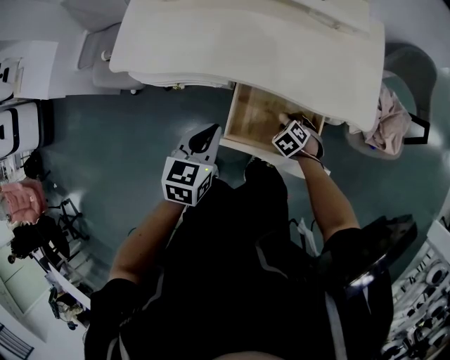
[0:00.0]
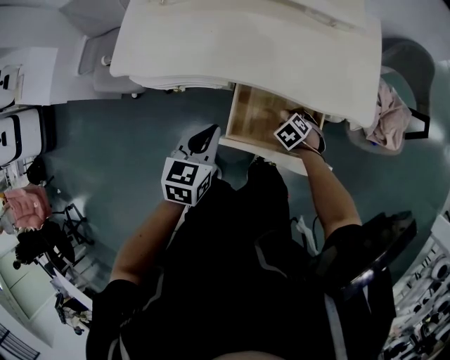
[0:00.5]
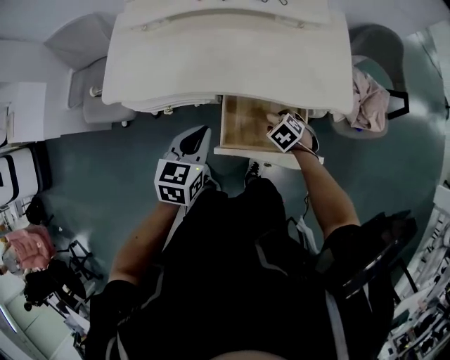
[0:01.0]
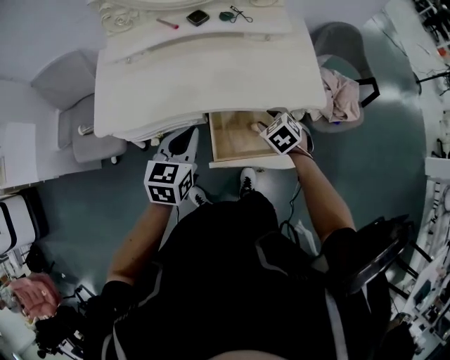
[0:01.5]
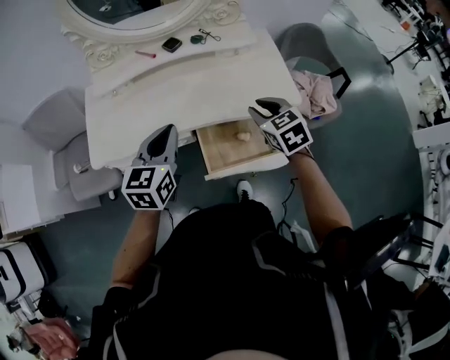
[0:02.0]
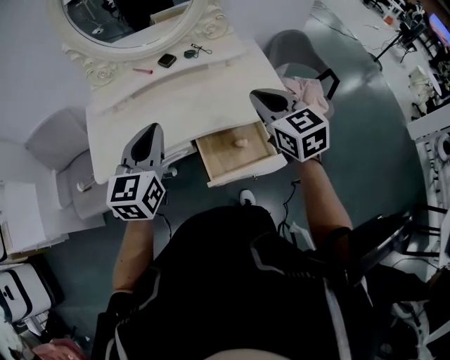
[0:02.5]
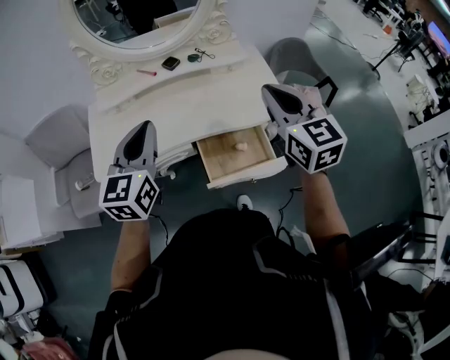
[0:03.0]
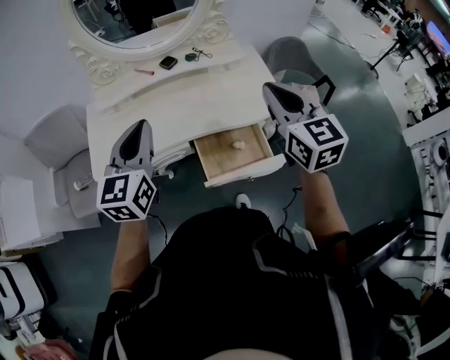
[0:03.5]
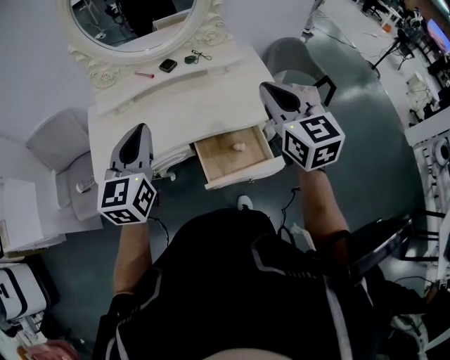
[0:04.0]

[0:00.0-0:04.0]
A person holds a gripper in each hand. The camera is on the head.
0:00.0 to 0:02.0: The right gripper heads upward, covering about 35 cm, and tilts its fingers about 30 degrees upward; the left gripper travels upward by roughly 20 cm, and turns by roughly 30 degrees.
0:02.0 to 0:04.0: The left gripper moves upward, approximately 10 cm; the right gripper heads upward, covering about 20 cm, tilts its fingers roughly 30 degrees upward, and closes up.

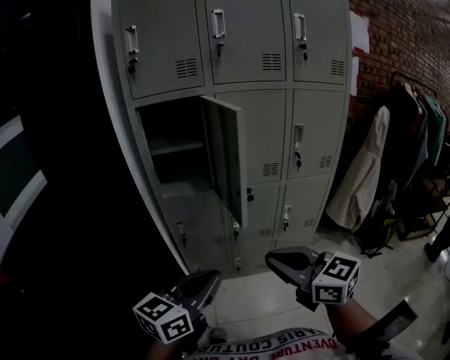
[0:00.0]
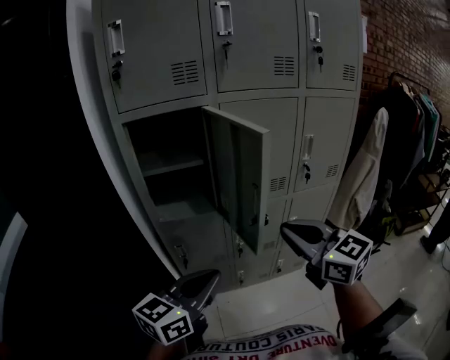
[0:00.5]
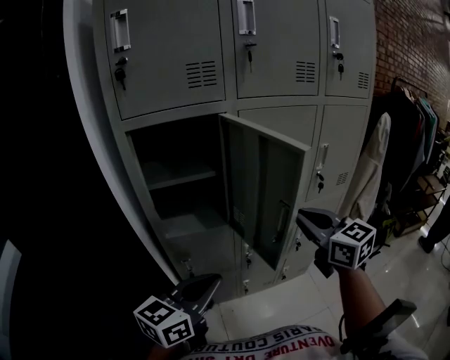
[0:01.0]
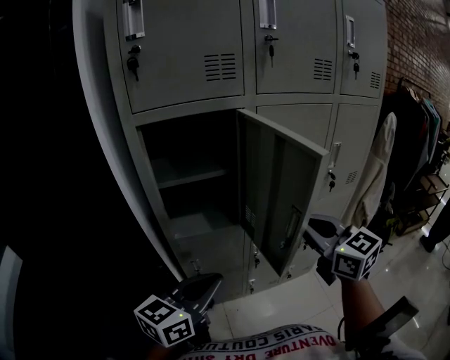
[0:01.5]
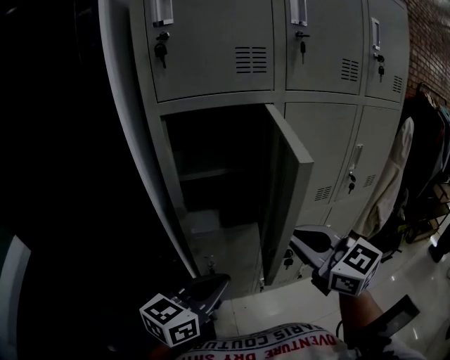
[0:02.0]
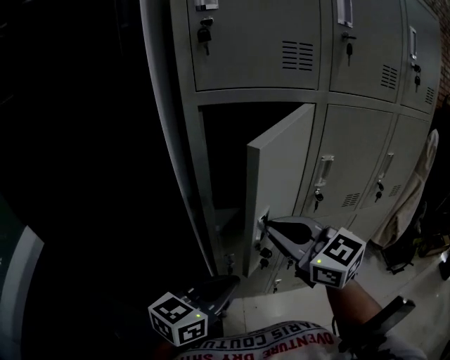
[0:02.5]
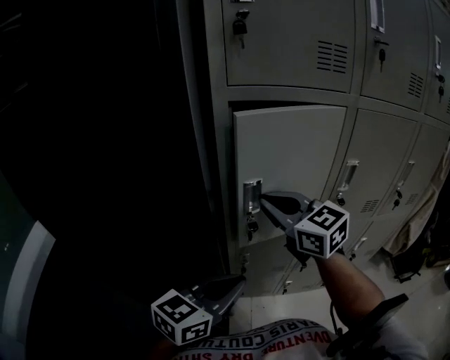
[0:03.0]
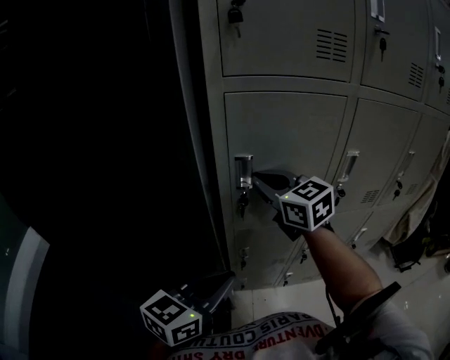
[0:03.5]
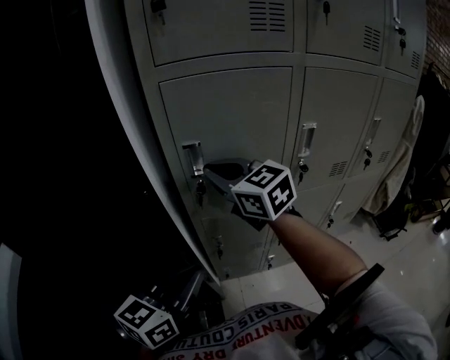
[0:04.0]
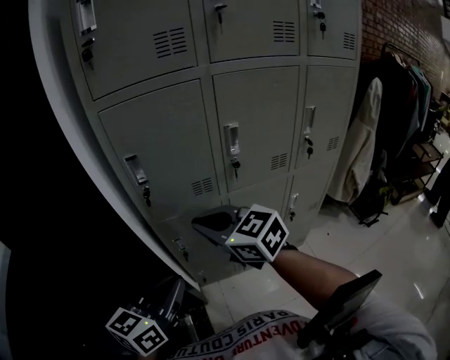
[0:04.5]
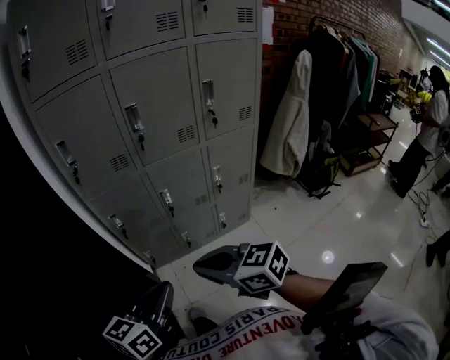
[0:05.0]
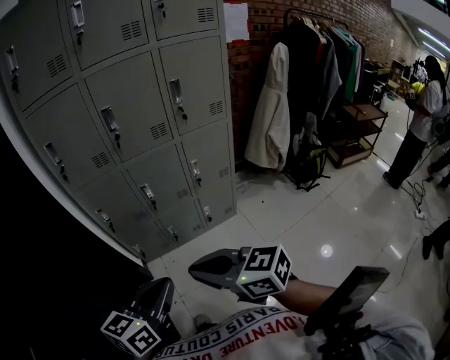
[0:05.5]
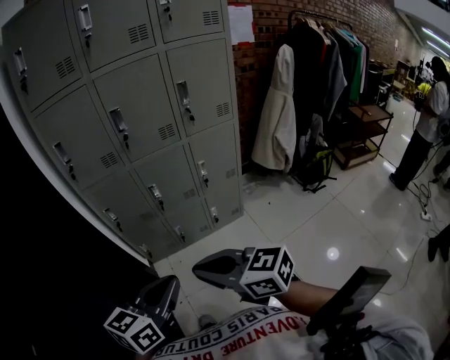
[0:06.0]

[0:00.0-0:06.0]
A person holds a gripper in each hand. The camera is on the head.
0:00.0 to 0:02.0: Both grippers move forward and to the left, approximately 25 cm.
0:02.0 to 0:04.0: The left gripper heads to the left, covering roughly 10 cm. Meanwhile the right gripper shifts some 25 cm forward and to the left.
0:04.0 to 0:06.0: The two grippers travel together, backward and to the right, approximately 60 cm. The right gripper swivels some 20 degrees.

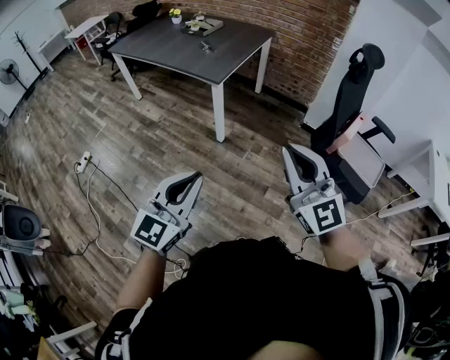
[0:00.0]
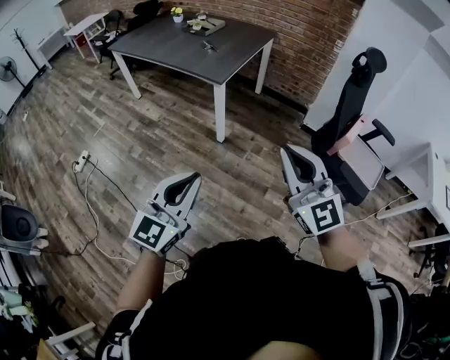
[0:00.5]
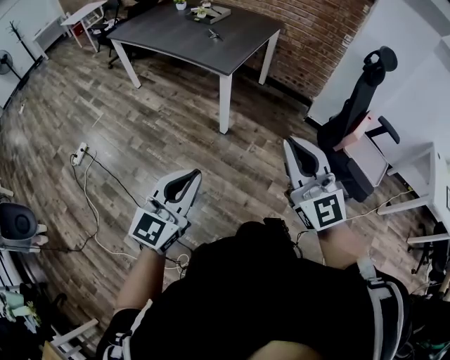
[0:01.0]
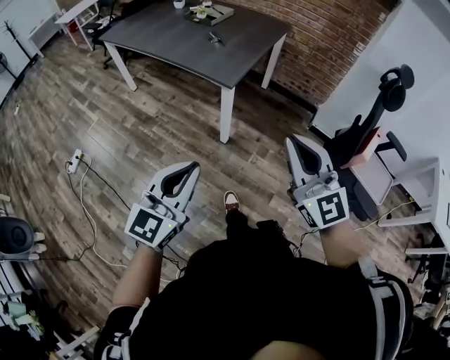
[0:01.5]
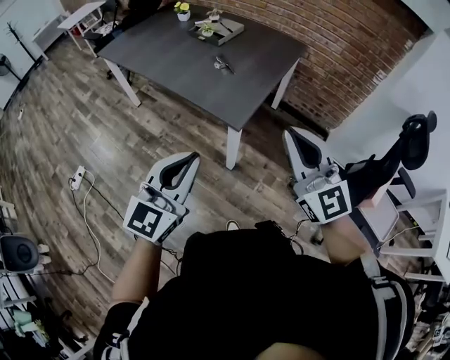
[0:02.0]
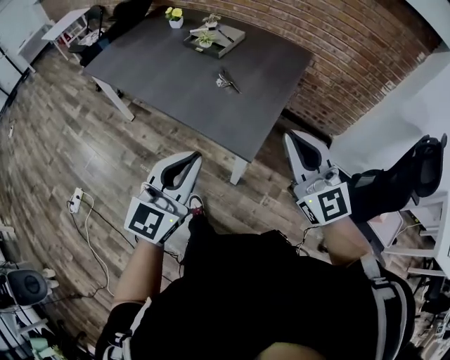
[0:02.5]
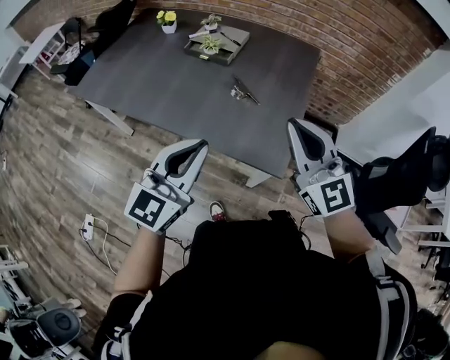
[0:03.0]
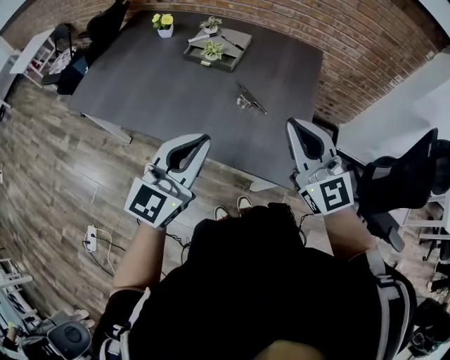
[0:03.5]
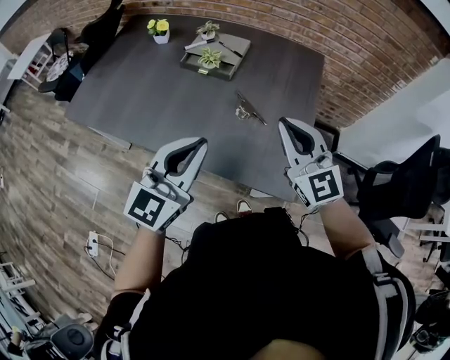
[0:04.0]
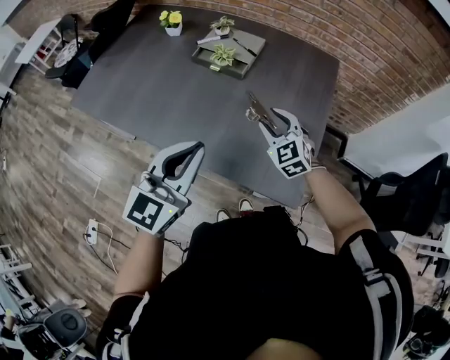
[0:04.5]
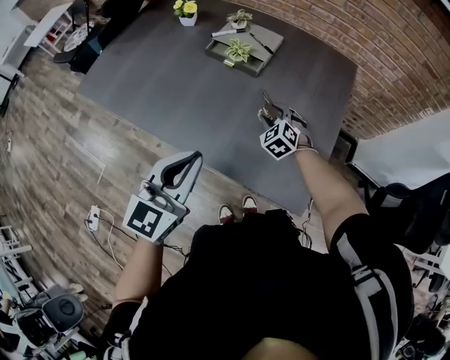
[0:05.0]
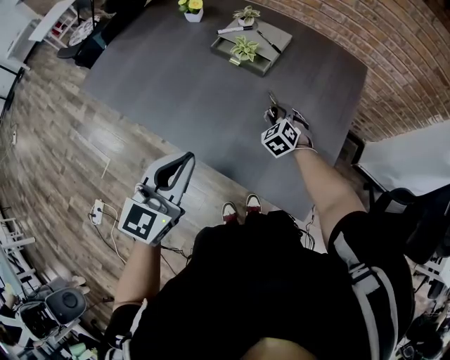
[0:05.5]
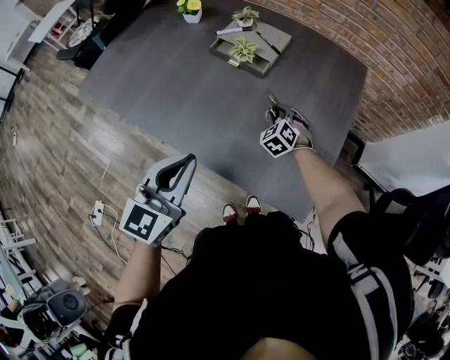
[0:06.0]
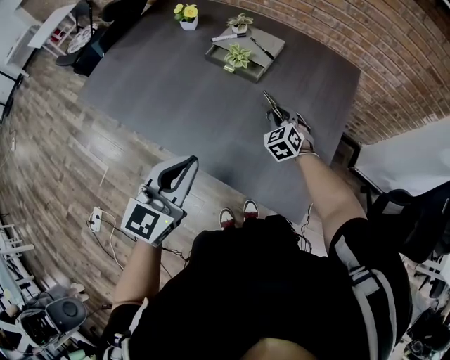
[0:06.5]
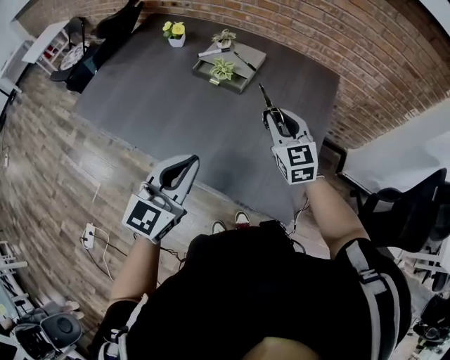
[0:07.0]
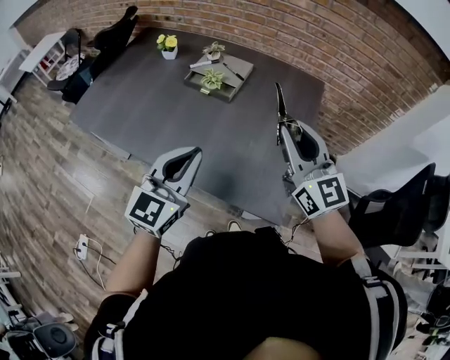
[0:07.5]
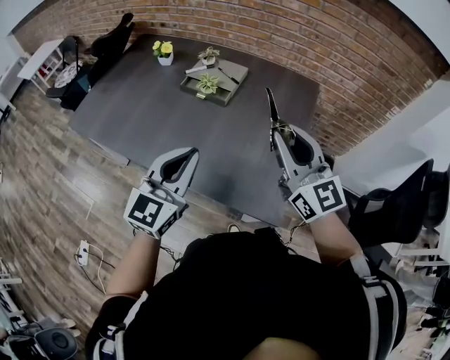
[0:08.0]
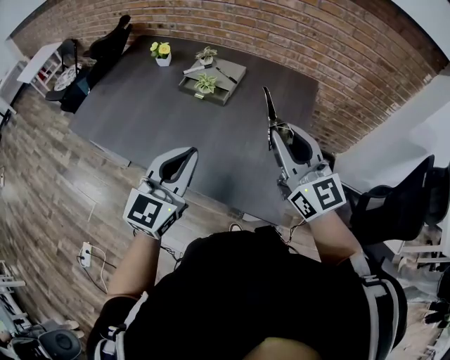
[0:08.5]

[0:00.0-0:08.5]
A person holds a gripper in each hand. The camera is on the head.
0:00.0 to 0:02.0: The pair of grippers is taken forward, approximately 40 cm.
0:02.0 to 0:04.0: Both grippers are carried forward and to the left, roughly 40 cm. The right gripper rotates about 20 degrees.
0:04.0 to 0:06.5: The right gripper heads downward and forward, covering approximately 30 cm, tilts its fingers approximately 40 degrees downward, and opens, then closes once more. Meanwhile the left gripper shifts some 10 cm downward and to the left.
0:06.5 to 0:08.5: The right gripper travels upward and backward by roughly 35 cm, and angles its fingers upward, by approximately 50 degrees. Meanwhile the left gripper travels to the right and upward by some 10 cm.

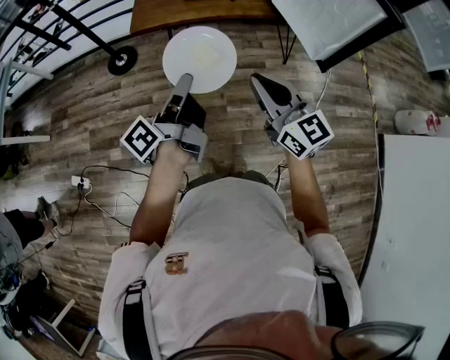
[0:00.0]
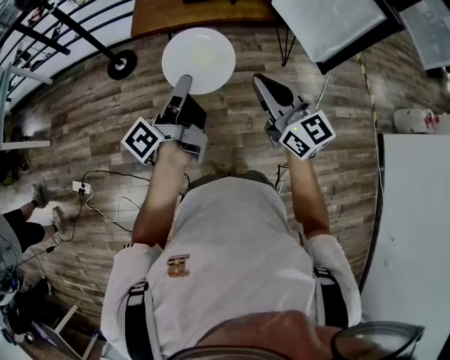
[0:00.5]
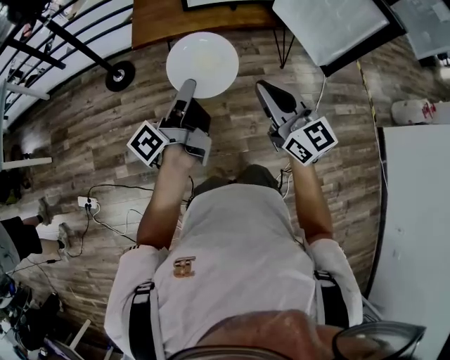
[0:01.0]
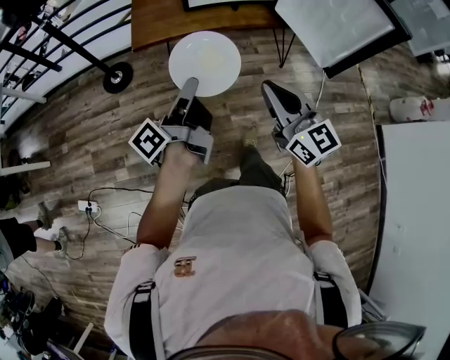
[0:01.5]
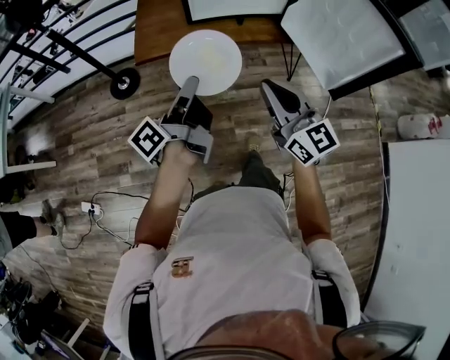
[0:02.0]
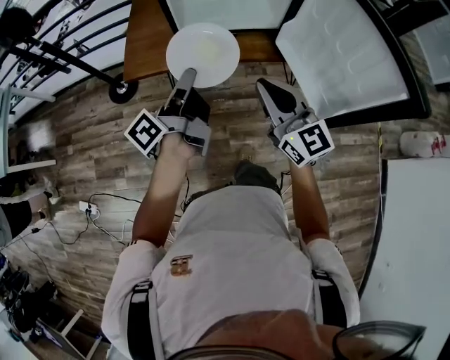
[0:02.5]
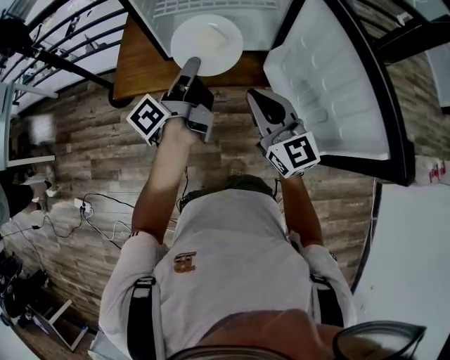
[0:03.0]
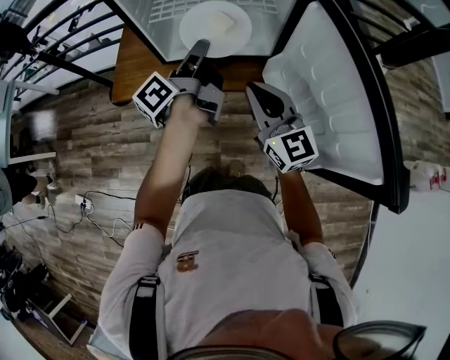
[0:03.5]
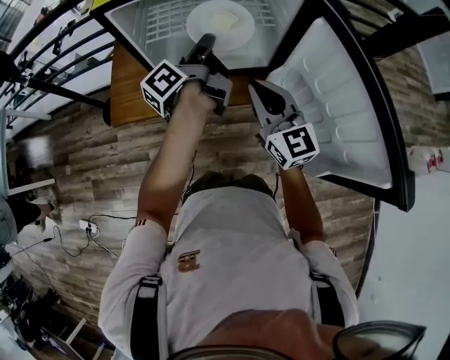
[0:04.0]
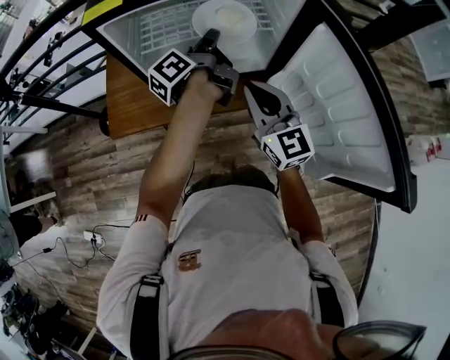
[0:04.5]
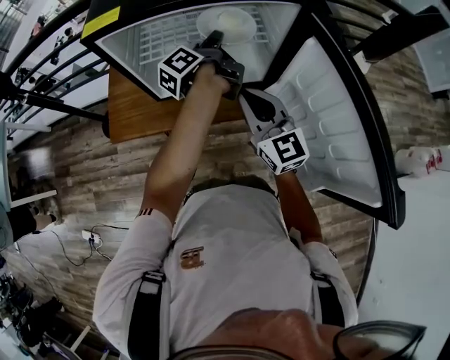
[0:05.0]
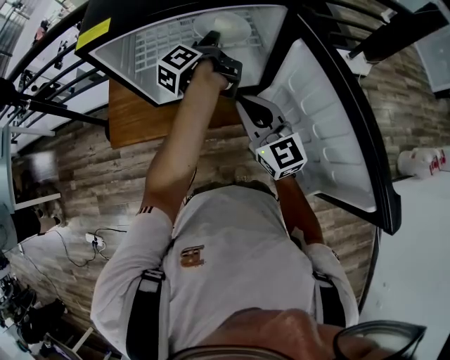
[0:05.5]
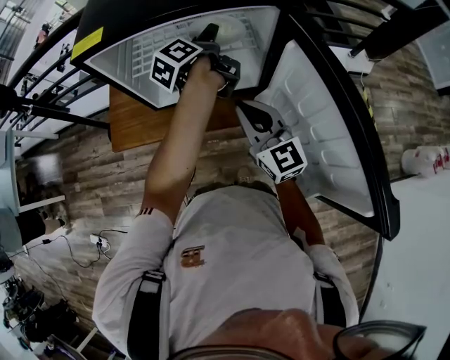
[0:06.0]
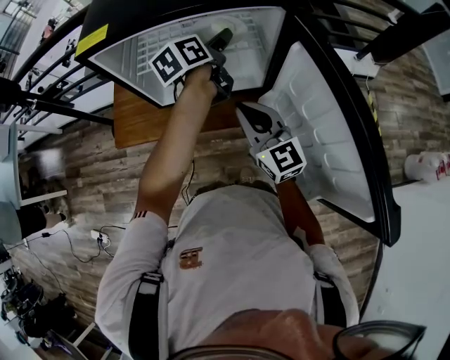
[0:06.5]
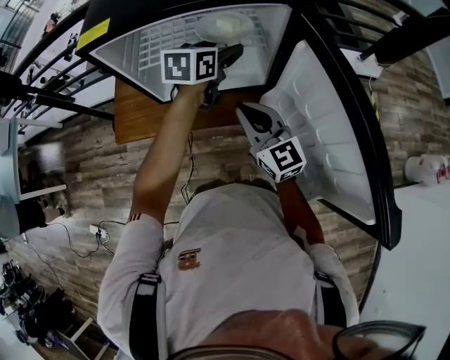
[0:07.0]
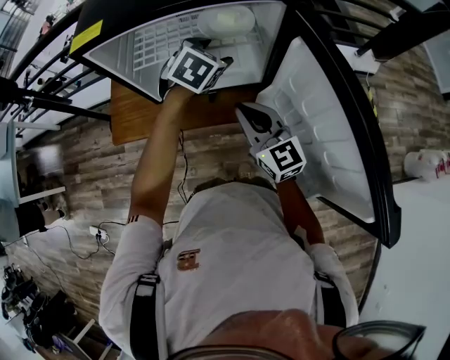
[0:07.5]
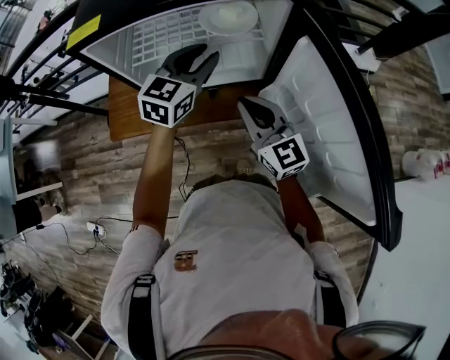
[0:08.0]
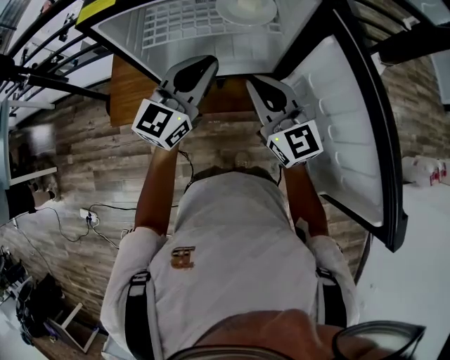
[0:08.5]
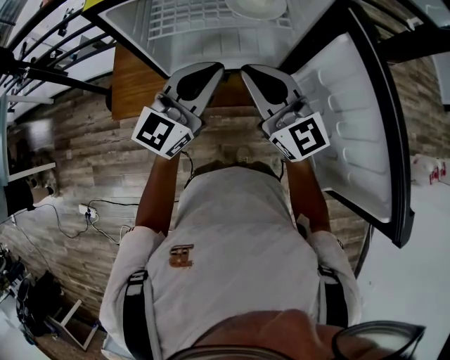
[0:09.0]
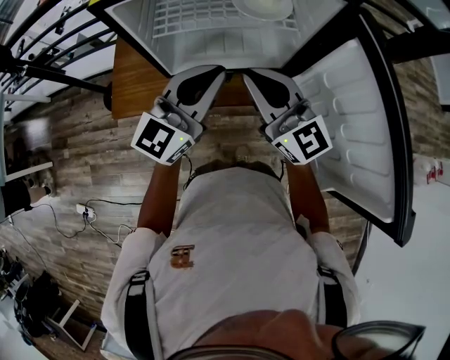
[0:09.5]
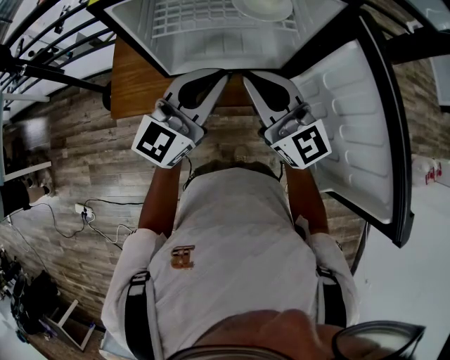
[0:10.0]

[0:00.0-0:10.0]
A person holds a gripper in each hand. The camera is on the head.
0:00.0 to 0:02.0: The grippers both shift forward by some 15 cm.
0:02.0 to 0:04.0: The grippers both shift forward and to the right by roughly 40 cm.
0:04.0 to 0:06.0: The right gripper ends up roughly 5 cm from where it was, while the left gripper goes about 15 cm forward and to the right, and opens up.
0:06.0 to 0:08.0: The left gripper moves backward, roughly 10 cm, and rotates around the line of its fingers by approximately 80 degrees, clockwise from behind.
0:08.0 to 0:10.0: The right gripper shifts roughly 10 cm to the left and upward, while the left gripper heads backward and to the left, covering some 15 cm, turns by roughly 20 degrees, and closes up.
